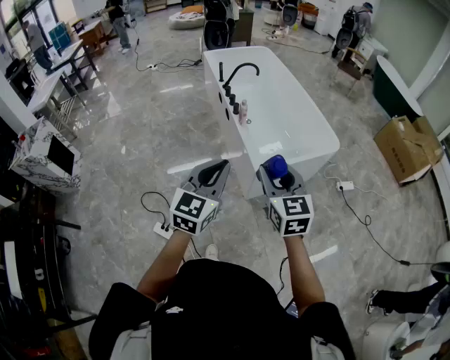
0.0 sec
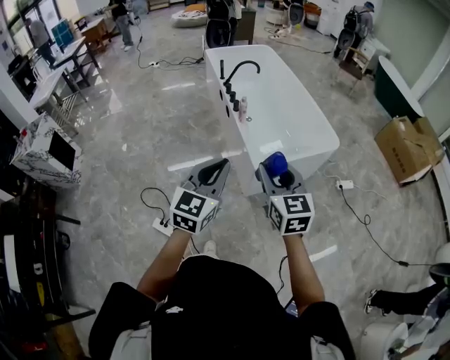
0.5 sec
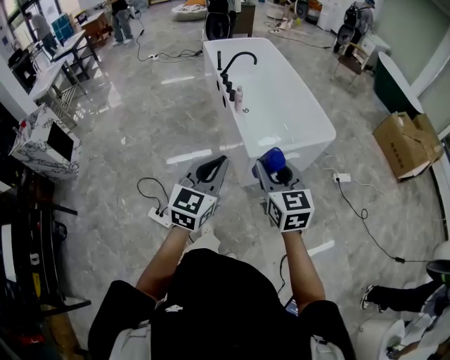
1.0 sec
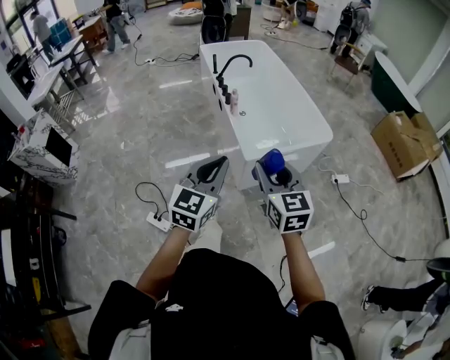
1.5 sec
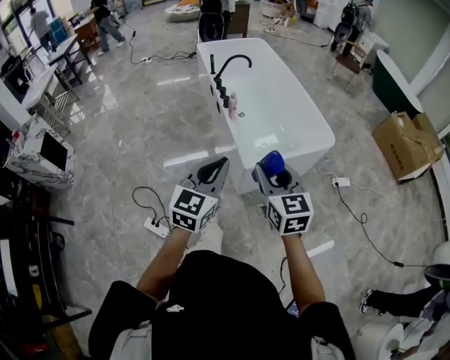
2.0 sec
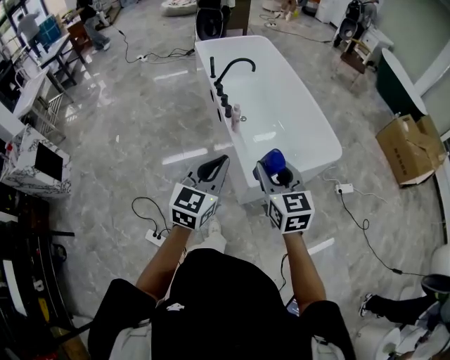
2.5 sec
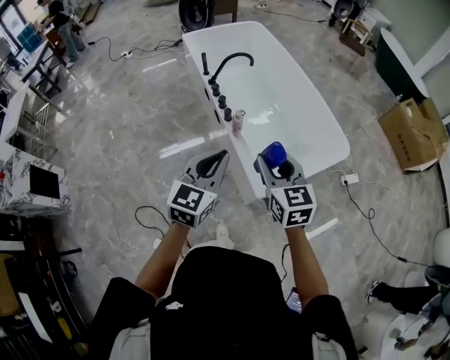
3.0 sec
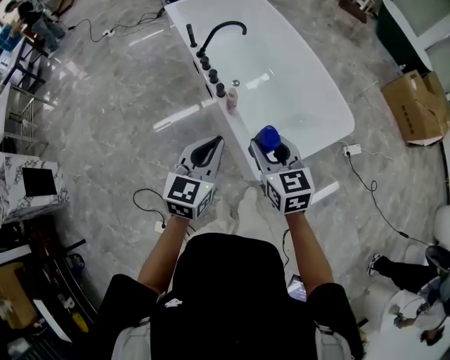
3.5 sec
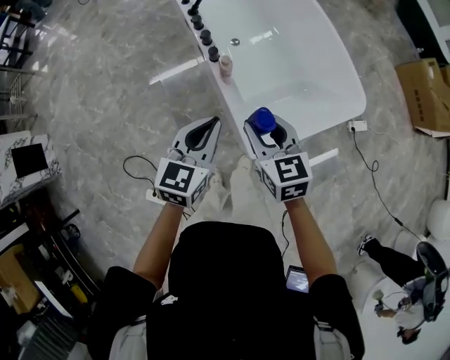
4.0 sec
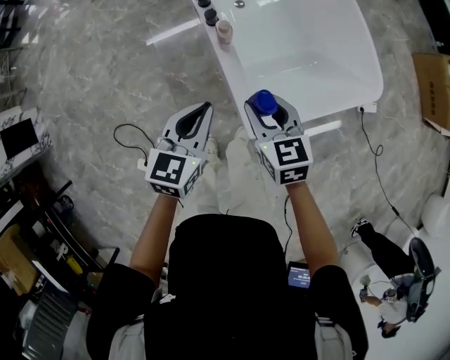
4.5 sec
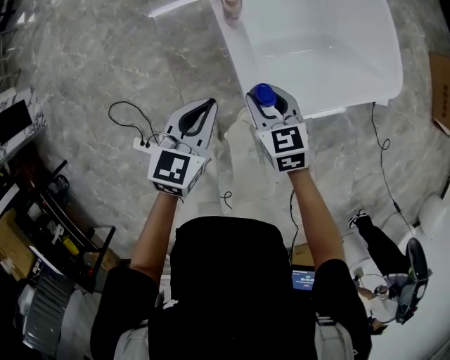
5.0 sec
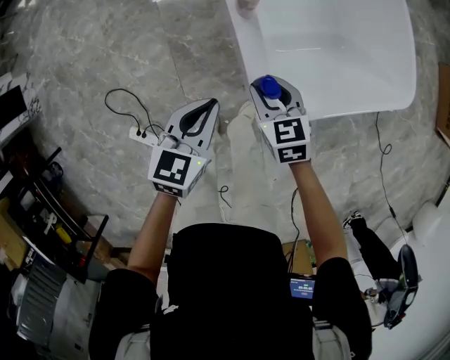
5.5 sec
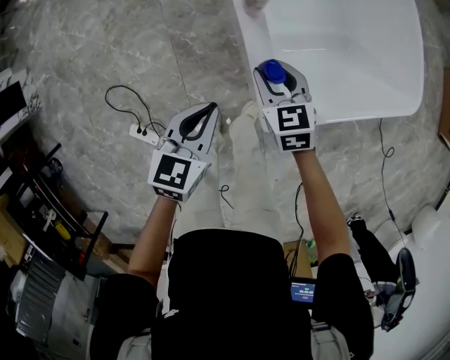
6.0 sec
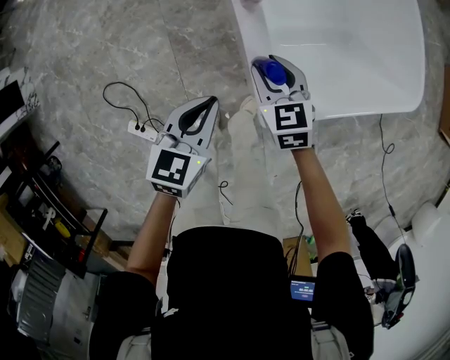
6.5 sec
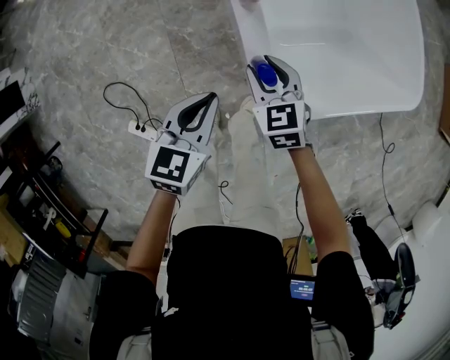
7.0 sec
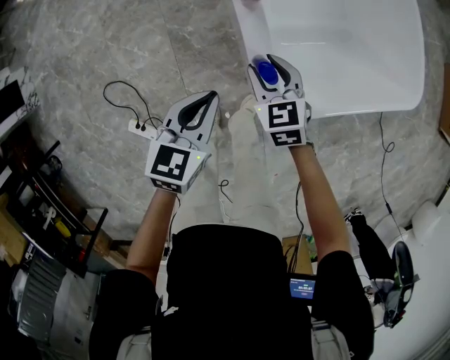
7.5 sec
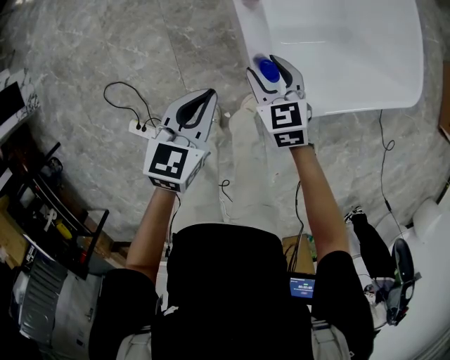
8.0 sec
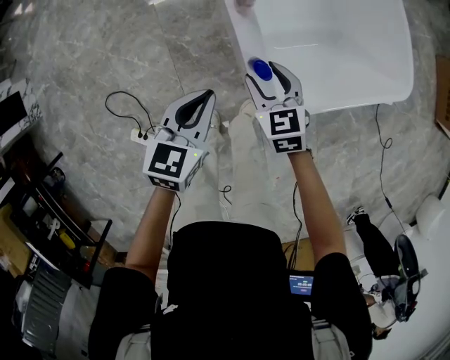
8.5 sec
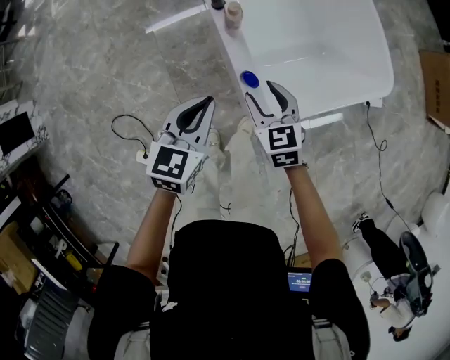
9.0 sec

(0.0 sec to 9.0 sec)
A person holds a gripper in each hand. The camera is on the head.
0.0 sec - 2.0 sec: The grippers both shift to the right by some 5 cm. The right gripper travels backward and back again, roughly 5 cm each way.
2.0 sec - 4.5 sec: The two grippers travel together, forward, roughly 40 cm. The grippers both shift downward by roughly 30 cm. The left gripper turns by some 30 degrees, while the right gripper changes its angle by some 30 degrees.
4.5 sec - 7.0 sec: The two grippers go approximately 15 cm downward.
7.0 sec - 9.0 sec: The two grippers go about 10 cm upward.

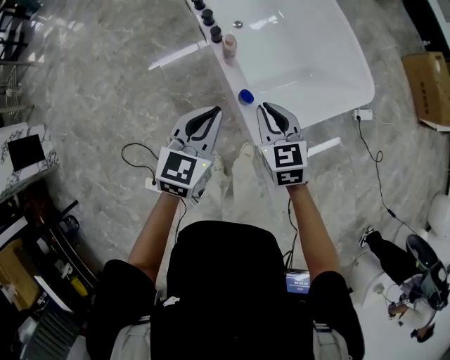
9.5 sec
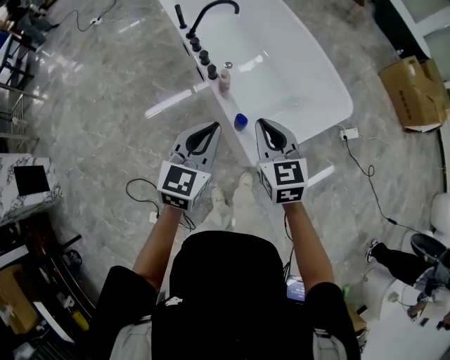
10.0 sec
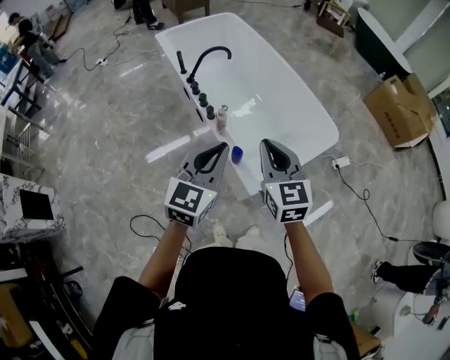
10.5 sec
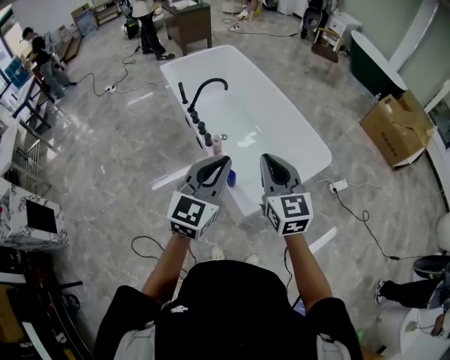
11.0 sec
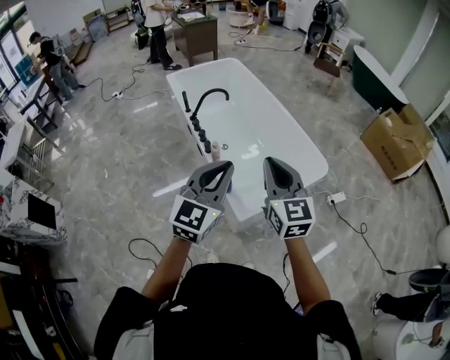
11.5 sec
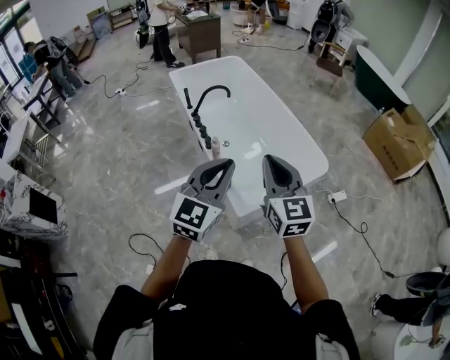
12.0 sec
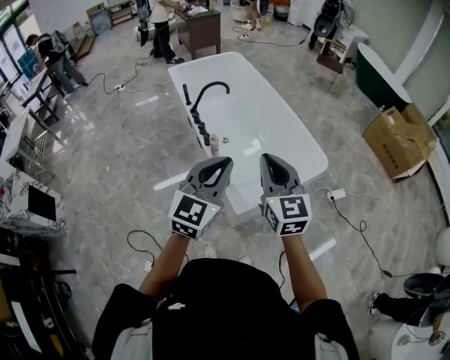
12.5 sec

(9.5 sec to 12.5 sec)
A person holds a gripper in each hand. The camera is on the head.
9.5 sec - 11.0 sec: Both grippers travel together upward, about 30 cm. The right gripper rotates roughly 30 degrees. Meanwhile the left gripper swivels roughly 20 degrees.
11.0 sec - 12.5 sec: Both grippers move to the right, approximately 5 cm.

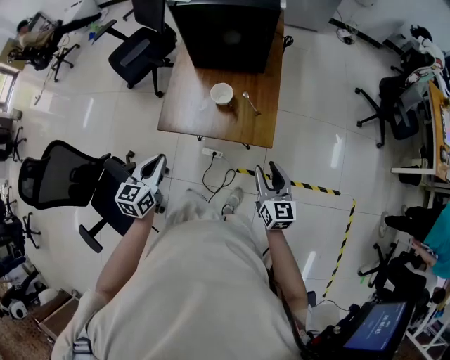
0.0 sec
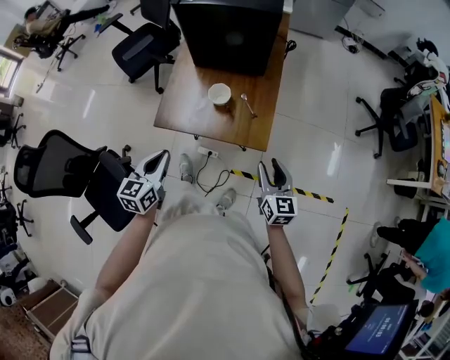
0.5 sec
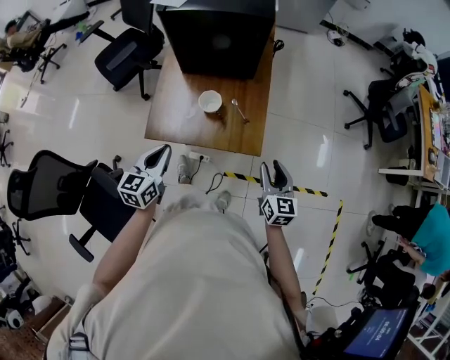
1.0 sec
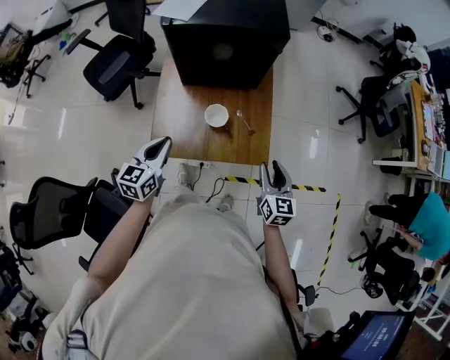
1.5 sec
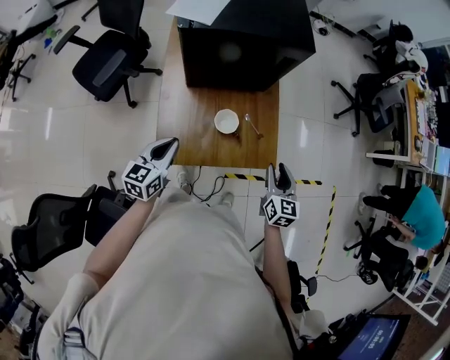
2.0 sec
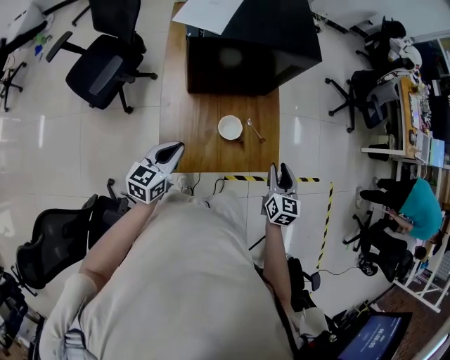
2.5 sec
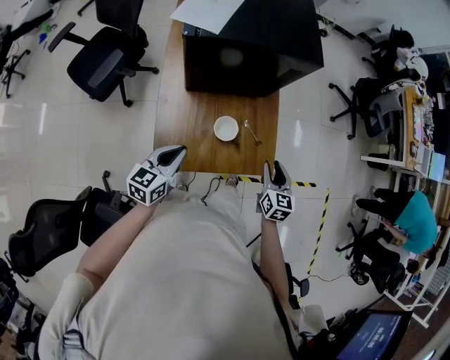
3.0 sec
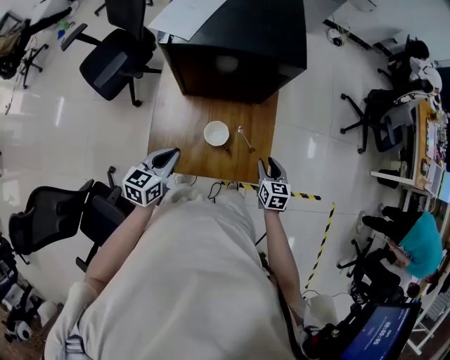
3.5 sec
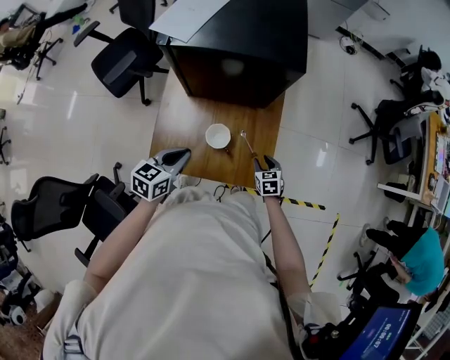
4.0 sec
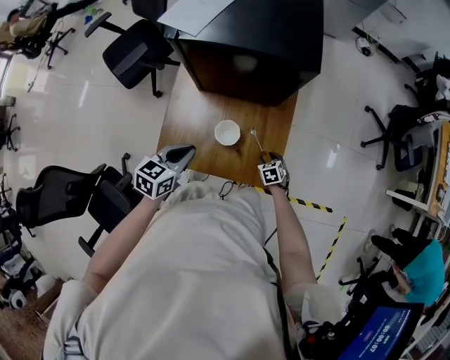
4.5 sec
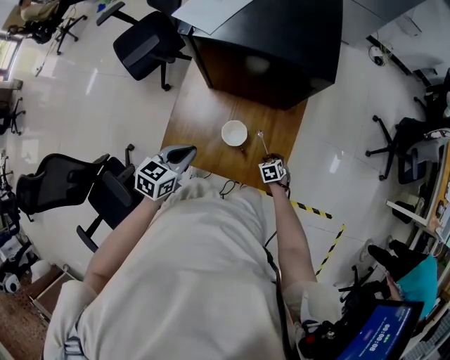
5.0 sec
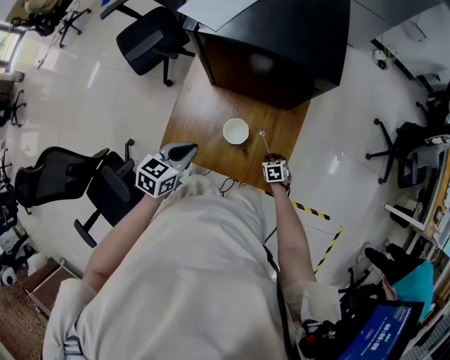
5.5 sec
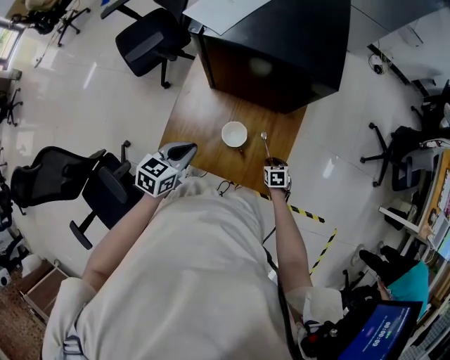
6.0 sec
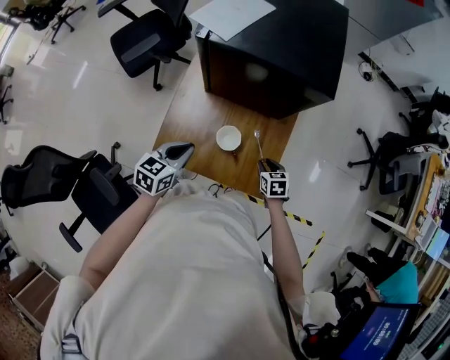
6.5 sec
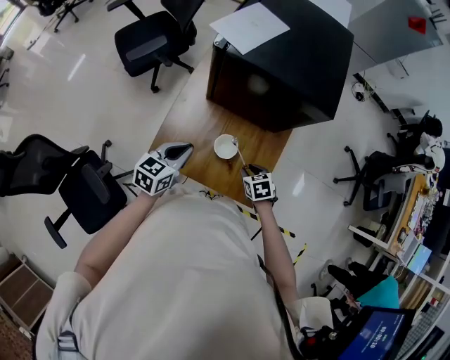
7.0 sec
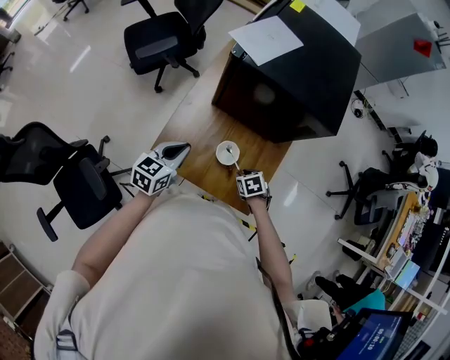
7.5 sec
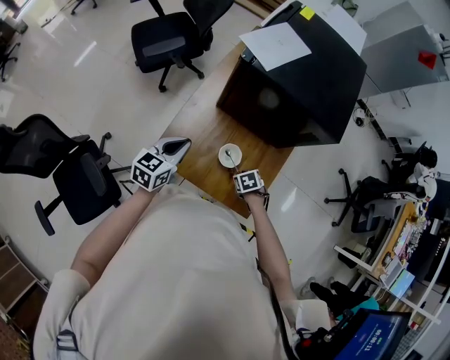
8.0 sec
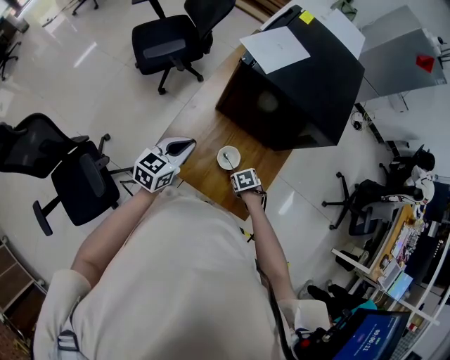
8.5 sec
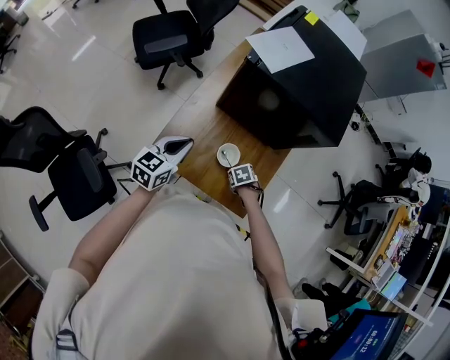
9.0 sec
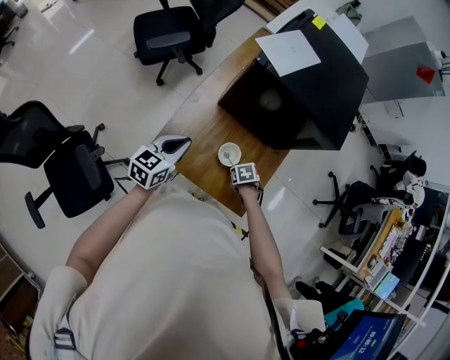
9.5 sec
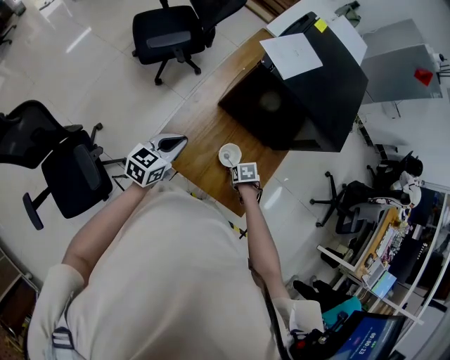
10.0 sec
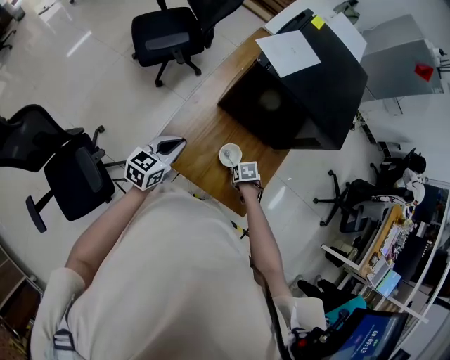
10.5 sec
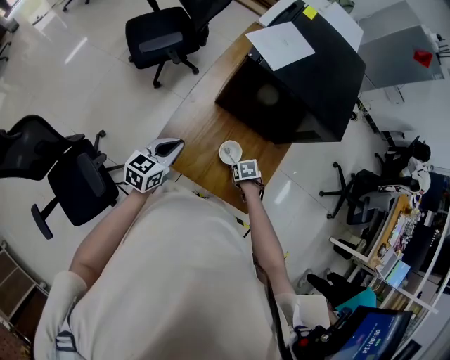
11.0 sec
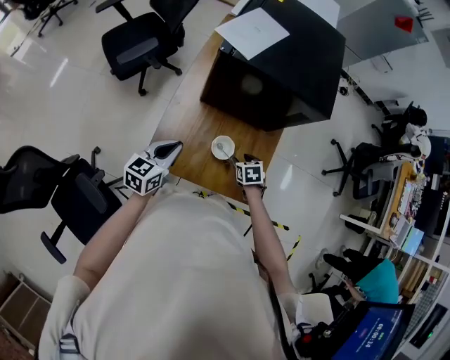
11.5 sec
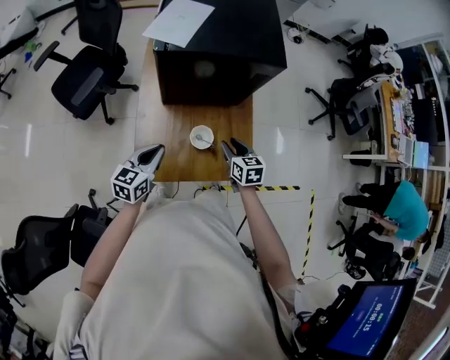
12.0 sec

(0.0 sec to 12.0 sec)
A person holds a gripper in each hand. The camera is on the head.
0.0 sec - 2.0 sec: The right gripper heads forward and to the left, covering approximately 15 cm, and changes its angle by roughly 30 degrees, while the left gripper is displaced forward by roughly 20 cm, and swivels roughly 20 degrees.
2.0 sec - 4.0 sec: The left gripper travels to the right by approximately 10 cm. The right gripper moves downward and forward, some 25 cm, and swivels about 40 degrees.
4.0 sec - 6.0 sec: The right gripper is displaced downward by roughly 5 cm.
6.0 sec - 8.0 sec: The right gripper ends up some 15 cm from where it was, and swivels approximately 30 degrees. The left gripper ends up some 5 cm from where it was.
8.0 sec - 10.0 sec: The grippers make only small movements.
10.0 sec - 12.0 sec: The left gripper rotates roughly 20 degrees, while the right gripper is displaced upward by some 15 cm, and points its fingers about 40 degrees further upward.

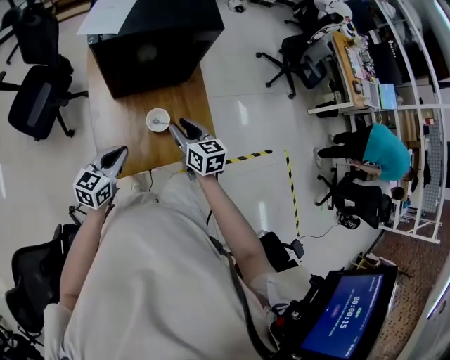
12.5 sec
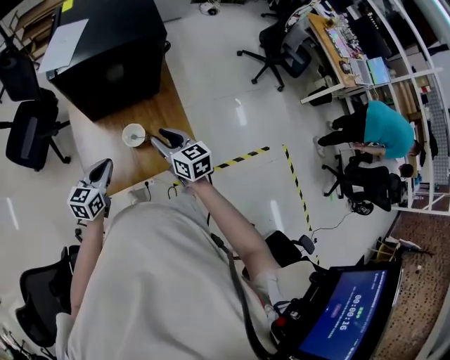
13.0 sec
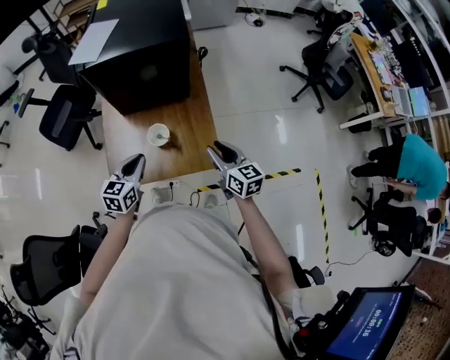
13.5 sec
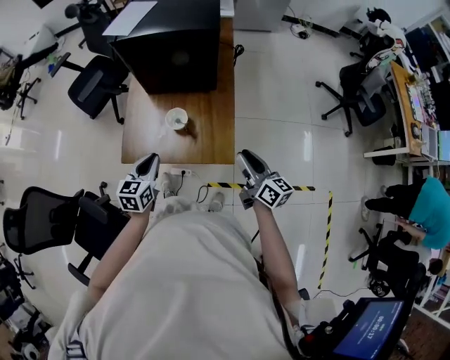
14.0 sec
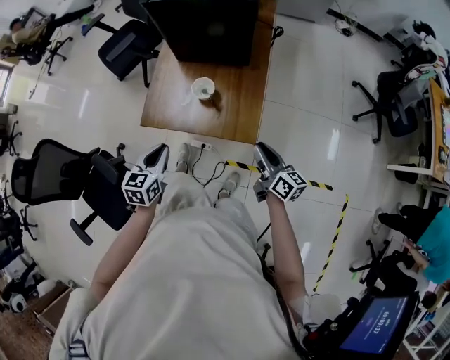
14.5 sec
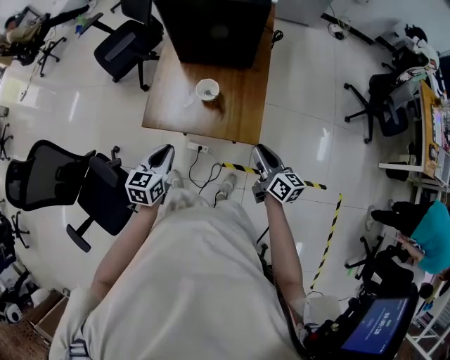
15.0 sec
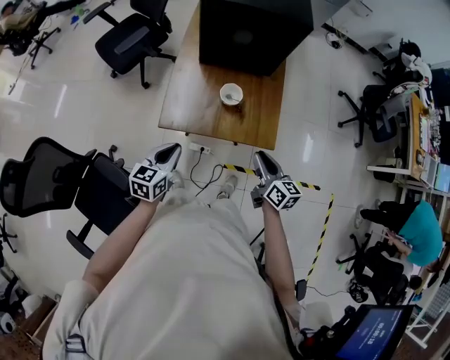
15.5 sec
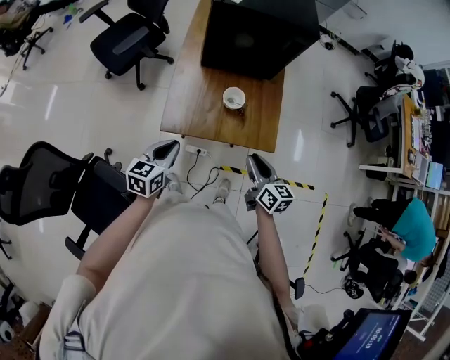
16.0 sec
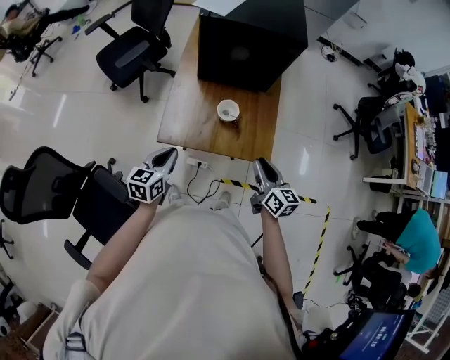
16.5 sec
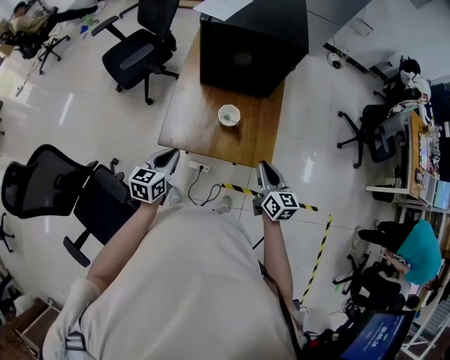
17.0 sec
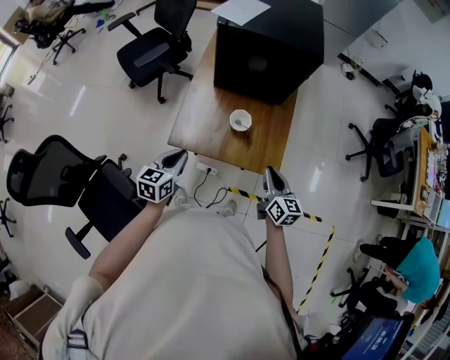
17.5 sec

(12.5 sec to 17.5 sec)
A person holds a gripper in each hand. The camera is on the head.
12.5 sec - 15.0 sec: The right gripper ends up some 25 cm from where it was, and rotates about 30 degrees, while the left gripper changes place by some 20 cm, and changes its angle by roughly 40 degrees.
15.0 sec - 17.5 sec: Both grippers travel together to the left, some 10 cm.
